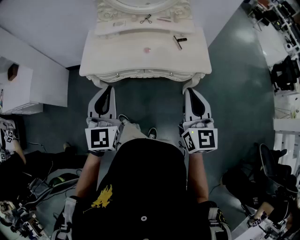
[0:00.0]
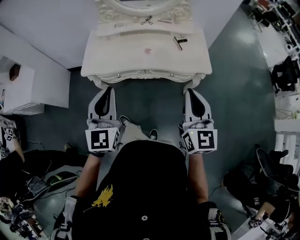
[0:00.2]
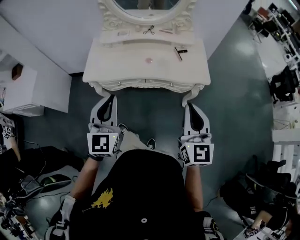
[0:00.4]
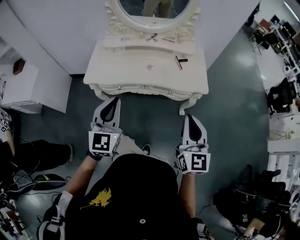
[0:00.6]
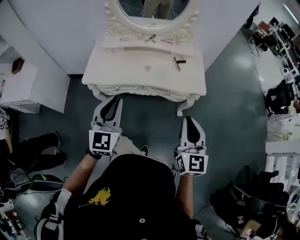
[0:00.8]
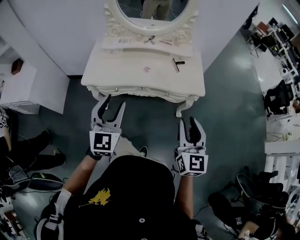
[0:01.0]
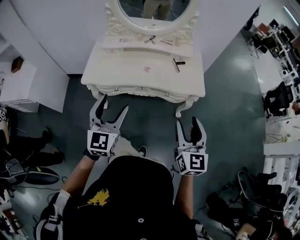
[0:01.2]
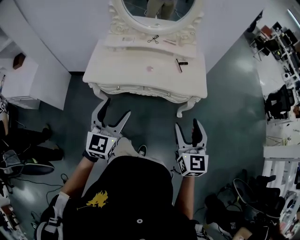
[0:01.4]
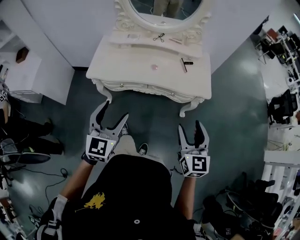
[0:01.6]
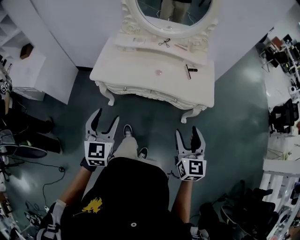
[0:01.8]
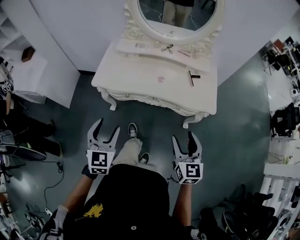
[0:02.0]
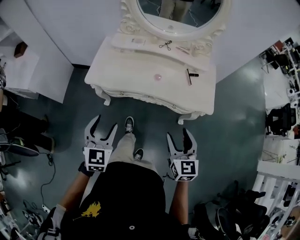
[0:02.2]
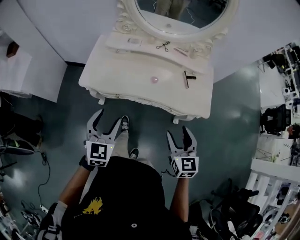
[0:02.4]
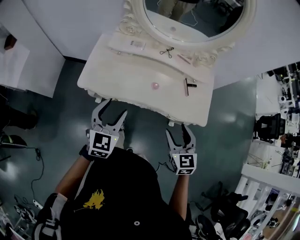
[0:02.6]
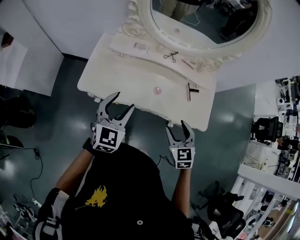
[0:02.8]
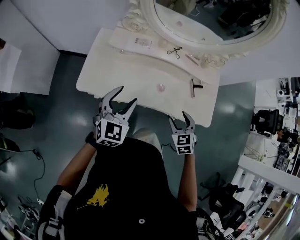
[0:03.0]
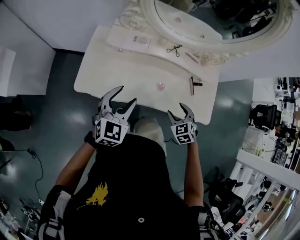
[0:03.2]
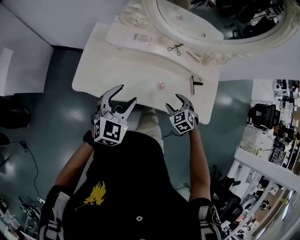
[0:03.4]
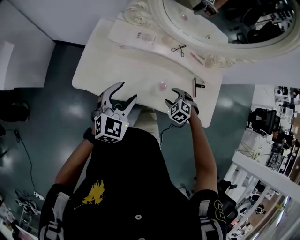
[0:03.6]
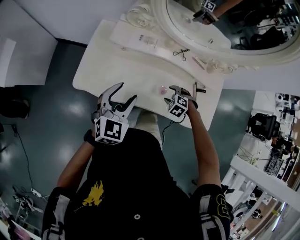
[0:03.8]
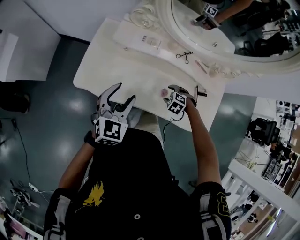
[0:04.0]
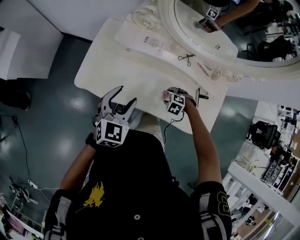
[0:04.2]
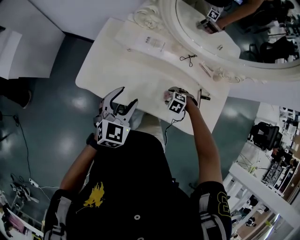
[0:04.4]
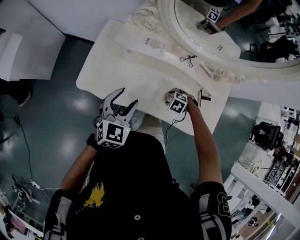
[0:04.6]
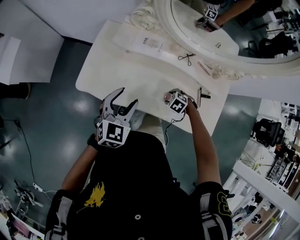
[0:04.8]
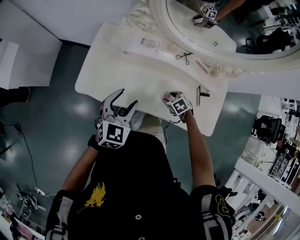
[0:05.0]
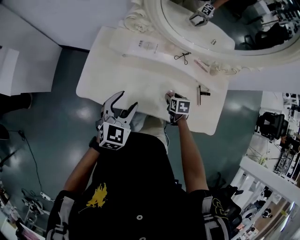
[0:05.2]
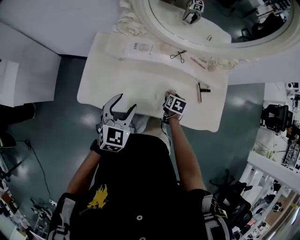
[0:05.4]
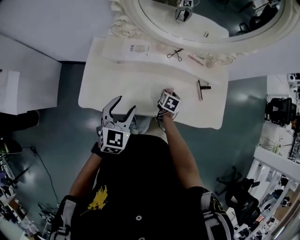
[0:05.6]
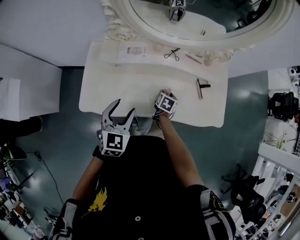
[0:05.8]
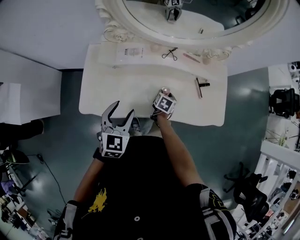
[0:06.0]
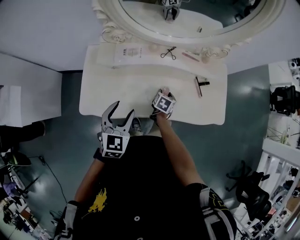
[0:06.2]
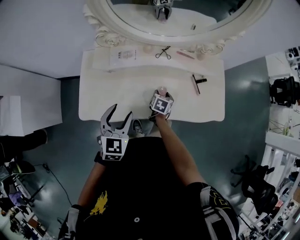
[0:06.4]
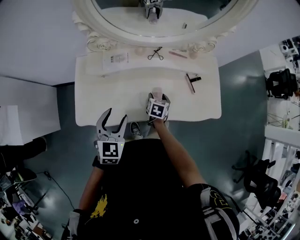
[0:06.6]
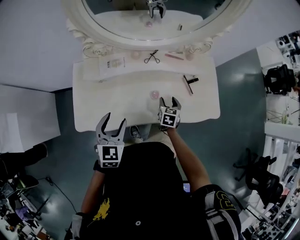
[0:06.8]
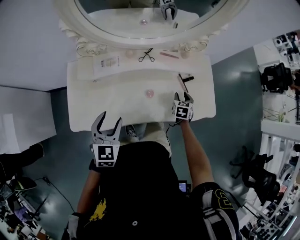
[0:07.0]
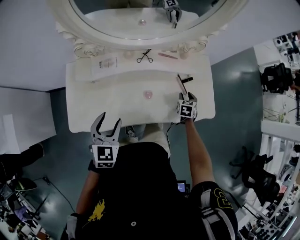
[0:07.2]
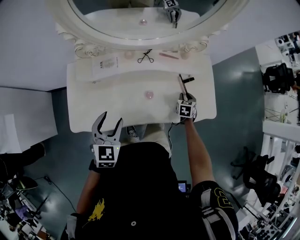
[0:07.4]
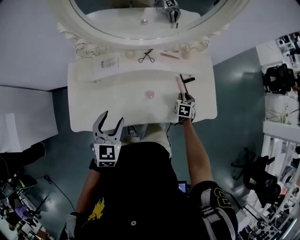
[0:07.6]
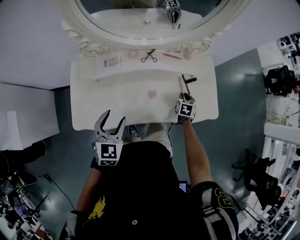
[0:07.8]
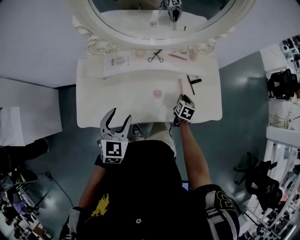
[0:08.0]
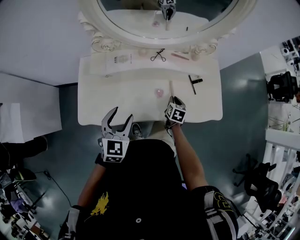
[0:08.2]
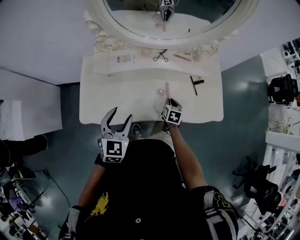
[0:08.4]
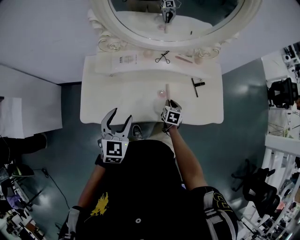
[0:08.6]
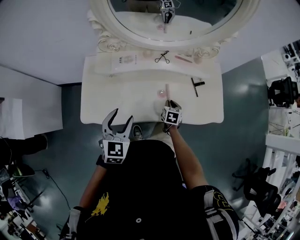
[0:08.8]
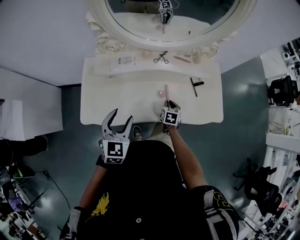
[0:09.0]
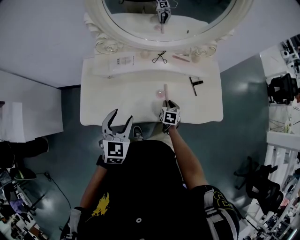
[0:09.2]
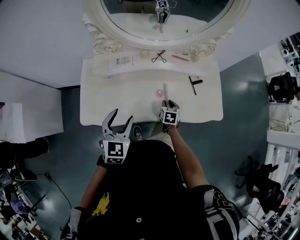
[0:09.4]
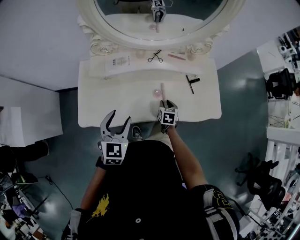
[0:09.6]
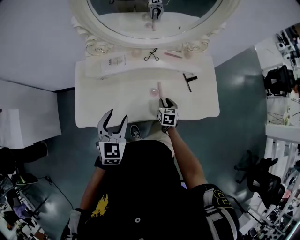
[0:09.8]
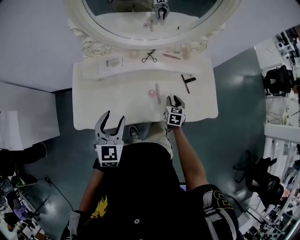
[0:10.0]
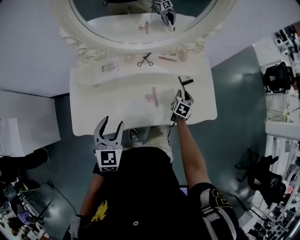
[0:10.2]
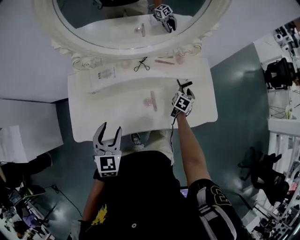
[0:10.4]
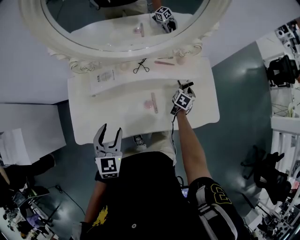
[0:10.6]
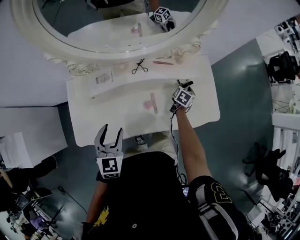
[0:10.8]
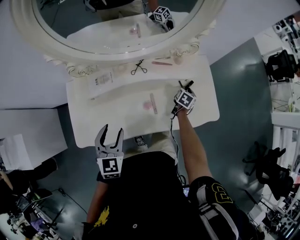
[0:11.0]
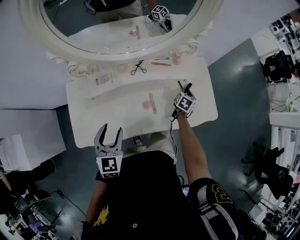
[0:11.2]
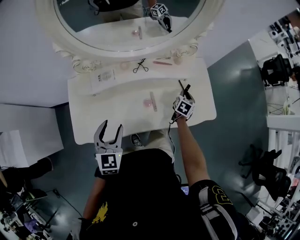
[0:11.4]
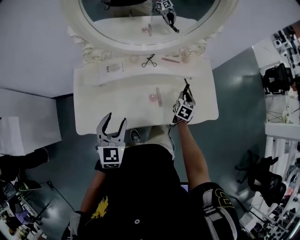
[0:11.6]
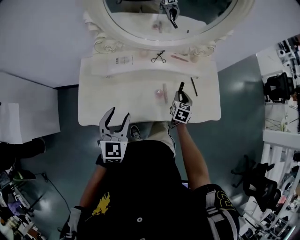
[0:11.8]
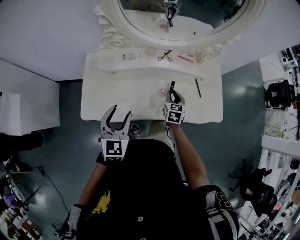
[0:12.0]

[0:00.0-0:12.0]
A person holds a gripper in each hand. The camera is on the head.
0:00.0 to 0:01.6: The right gripper changes place by about 5 cm, and opens, while the left gripper ends up about 5 cm from where it was, and opens up.
0:01.6 to 0:03.0: The right gripper shifts about 40 cm forward and downward, and points its fingers about 30 degrees further downward, while the left gripper is displaced forward by about 35 cm.
0:03.0 to 0:04.4: The left gripper moves some 10 cm. The right gripper is displaced downward by some 20 cm, and tilts its fingers about 40 degrees downward.
0:04.4 to 0:06.0: The right gripper rolls clockwise, seen from behind, by some 110 degrees.
0:06.0 to 0:07.6: The right gripper heads to the right, covering some 20 cm, and closes up.
0:07.6 to 0:09.0: The right gripper is displaced to the left and backward by some 15 cm. The left gripper changes place by some 5 cm.
0:09.0 to 0:10.4: The right gripper goes roughly 20 cm to the right and forward, and changes its angle by approximately 30 degrees.
0:10.4 to 0:12.0: The left gripper shifts some 5 cm backward; the right gripper heads to the left and backward, covering approximately 25 cm, and rotates approximately 30 degrees.

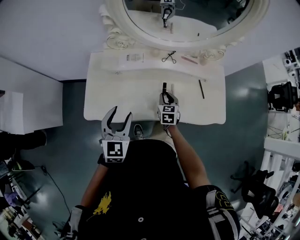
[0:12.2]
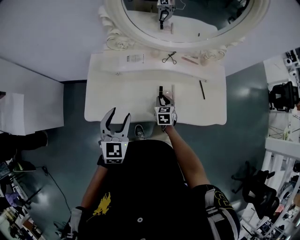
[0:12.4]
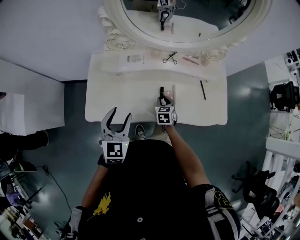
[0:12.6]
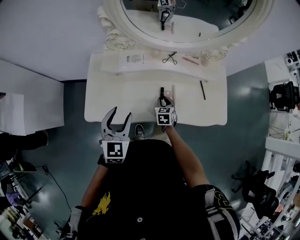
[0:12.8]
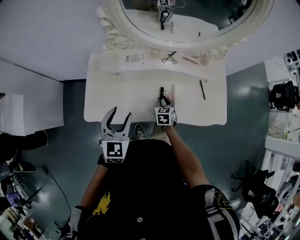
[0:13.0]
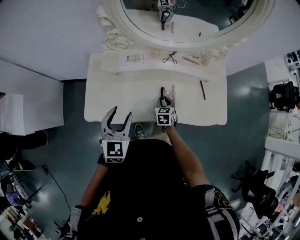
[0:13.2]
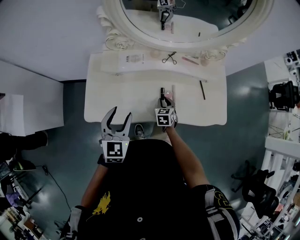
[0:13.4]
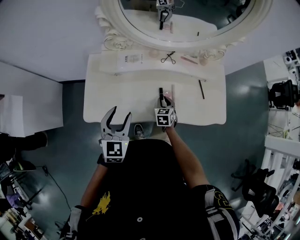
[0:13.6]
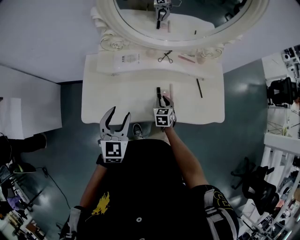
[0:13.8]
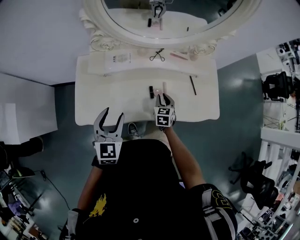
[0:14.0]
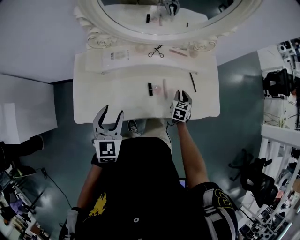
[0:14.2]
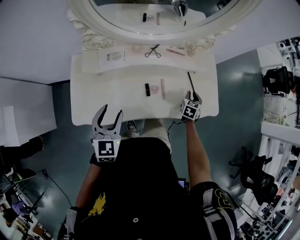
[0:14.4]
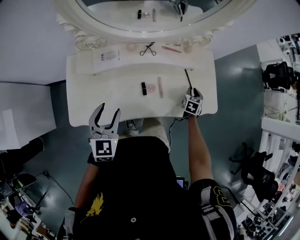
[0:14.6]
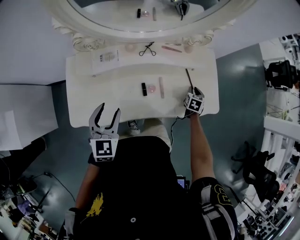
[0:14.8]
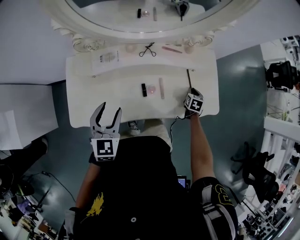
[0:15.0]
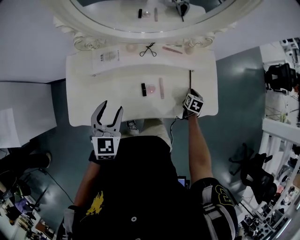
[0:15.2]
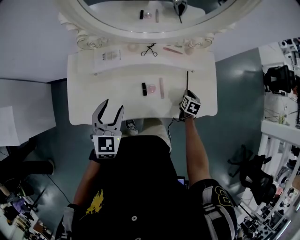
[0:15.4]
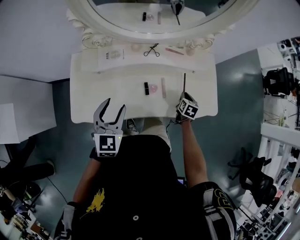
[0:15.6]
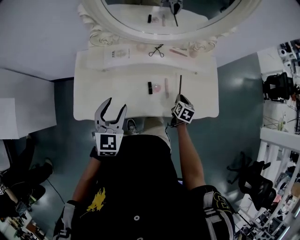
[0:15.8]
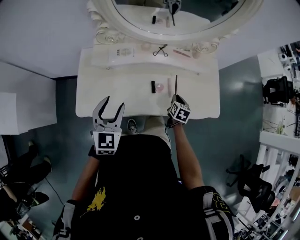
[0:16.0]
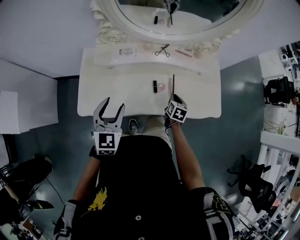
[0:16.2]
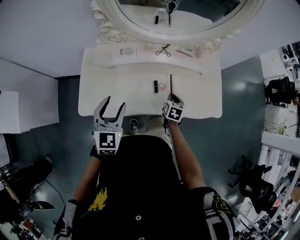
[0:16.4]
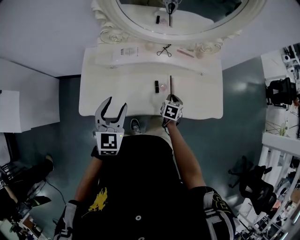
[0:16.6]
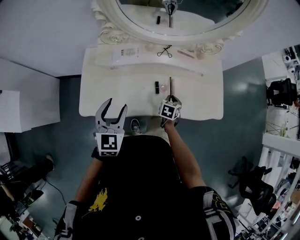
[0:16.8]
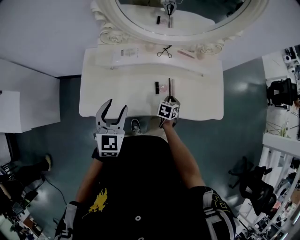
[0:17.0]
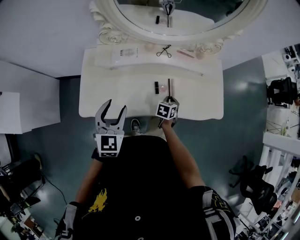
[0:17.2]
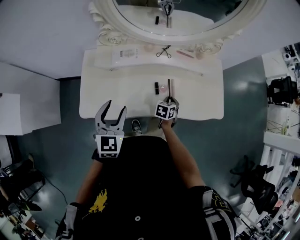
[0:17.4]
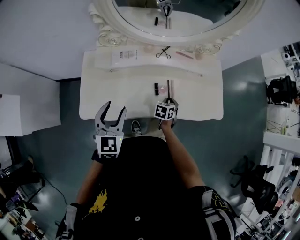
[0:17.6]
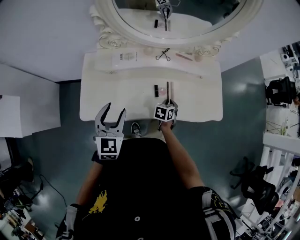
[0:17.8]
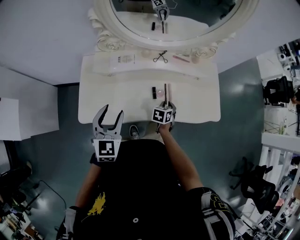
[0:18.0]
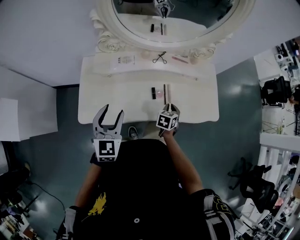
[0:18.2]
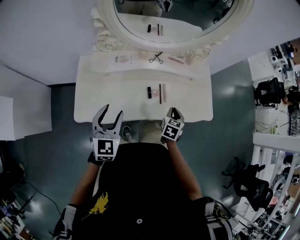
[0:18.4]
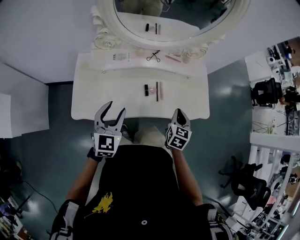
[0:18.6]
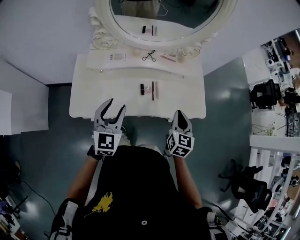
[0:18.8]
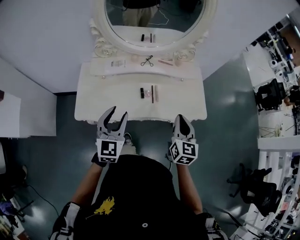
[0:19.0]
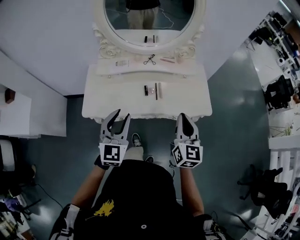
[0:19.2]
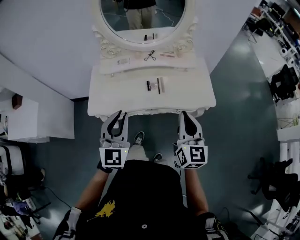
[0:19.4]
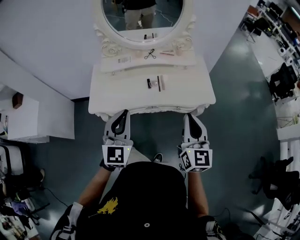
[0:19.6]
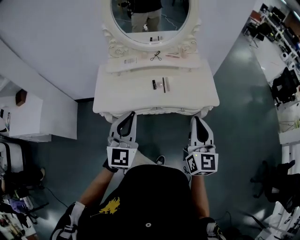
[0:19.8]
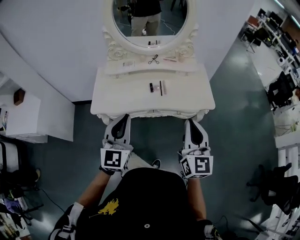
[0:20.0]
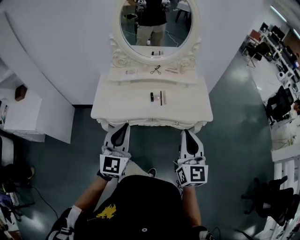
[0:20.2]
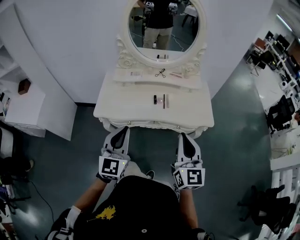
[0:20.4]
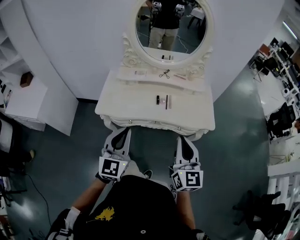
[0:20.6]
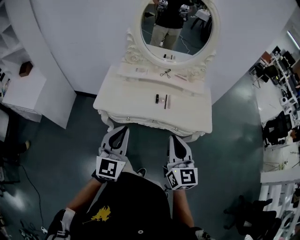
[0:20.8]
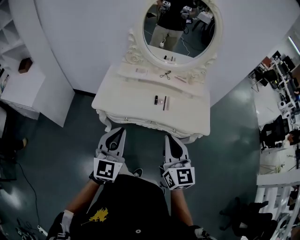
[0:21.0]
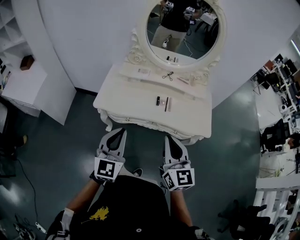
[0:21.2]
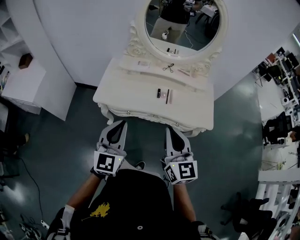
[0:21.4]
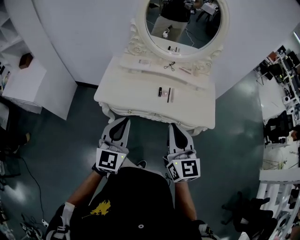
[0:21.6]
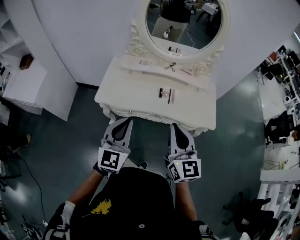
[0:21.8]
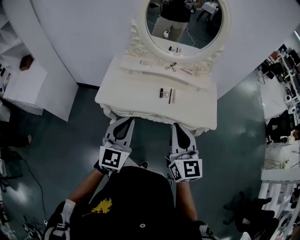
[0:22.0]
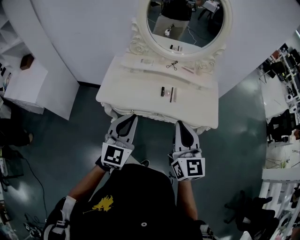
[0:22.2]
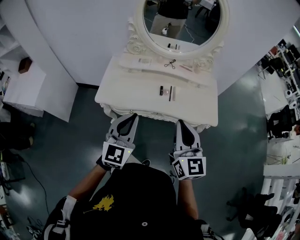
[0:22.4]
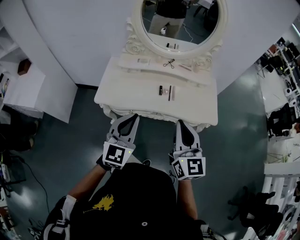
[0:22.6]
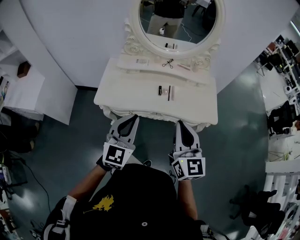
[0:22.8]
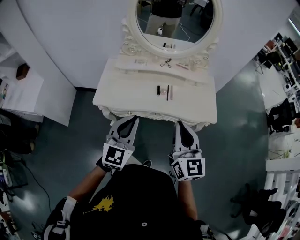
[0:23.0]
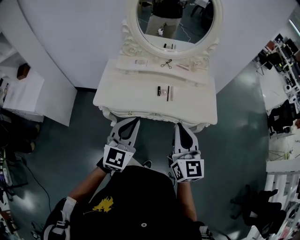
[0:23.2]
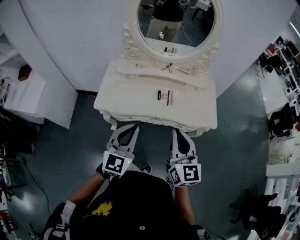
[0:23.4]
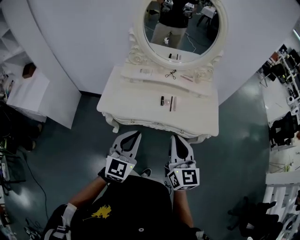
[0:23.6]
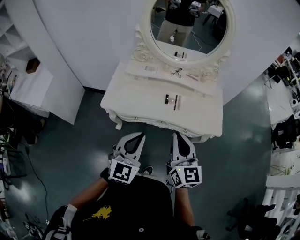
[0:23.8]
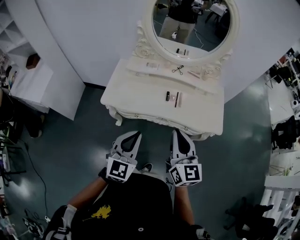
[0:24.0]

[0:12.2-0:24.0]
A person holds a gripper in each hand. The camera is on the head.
0:12.2 to 0:13.6: The right gripper ends up some 5 cm from where it was.
0:13.6 to 0:15.2: The right gripper moves to the right, roughly 25 cm, and turns by roughly 30 degrees, while the left gripper is displaced forward by roughly 10 cm.
0:15.2 to 0:16.6: The right gripper moves to the left and backward, roughly 20 cm; the left gripper is displaced backward by roughly 5 cm.
0:16.6 to 0:18.2: The grippers move only a little.
0:18.2 to 0:19.6: The right gripper shifts roughly 40 cm upward and backward, and tilts its fingers some 50 degrees upward. Meanwhile the left gripper travels backward, to the right and upward by roughly 30 cm, and closes up.
0:19.6 to 0:21.0: The left gripper heads backward and to the left, covering some 10 cm. Meanwhile the right gripper moves to the left, approximately 10 cm, and rotates approximately 20 degrees.
0:21.0 to 0:22.6: The left gripper goes approximately 5 cm forward.
0:22.6 to 0:24.0: There are only small adjustments of the grippers.
